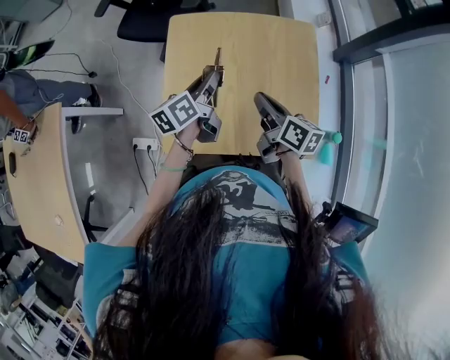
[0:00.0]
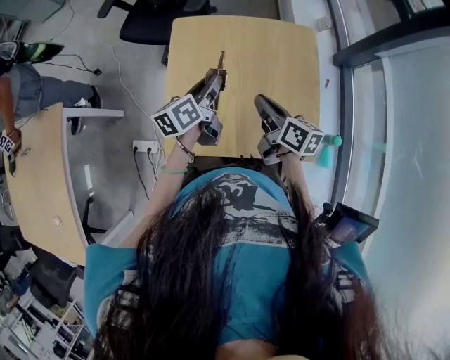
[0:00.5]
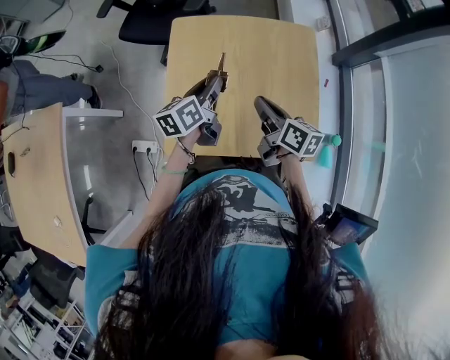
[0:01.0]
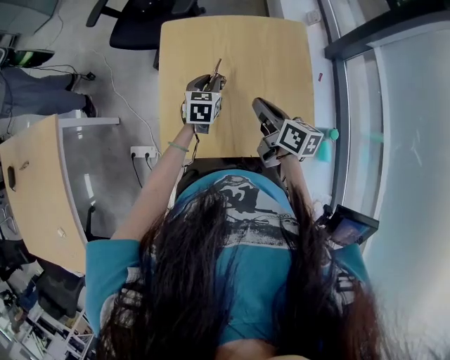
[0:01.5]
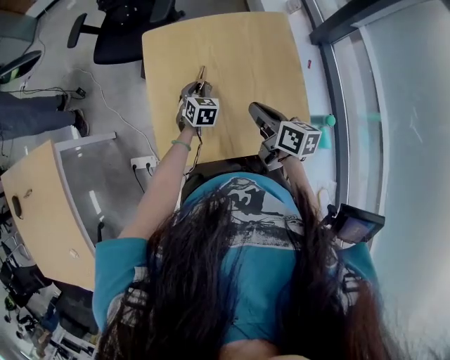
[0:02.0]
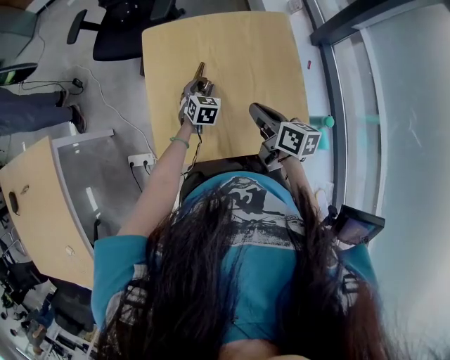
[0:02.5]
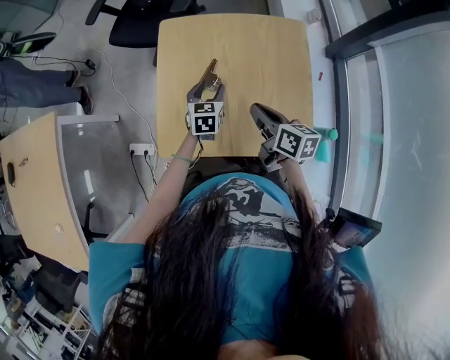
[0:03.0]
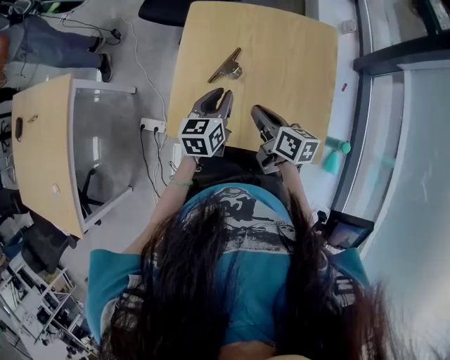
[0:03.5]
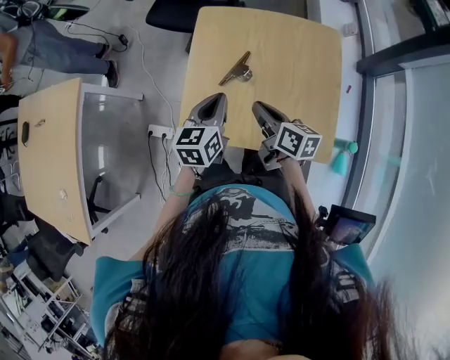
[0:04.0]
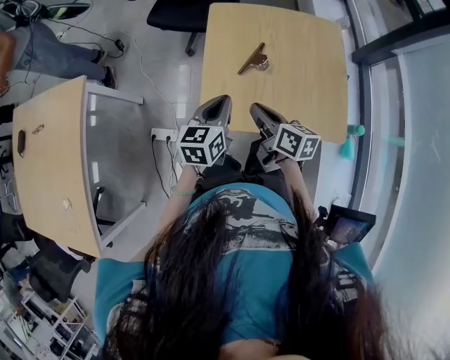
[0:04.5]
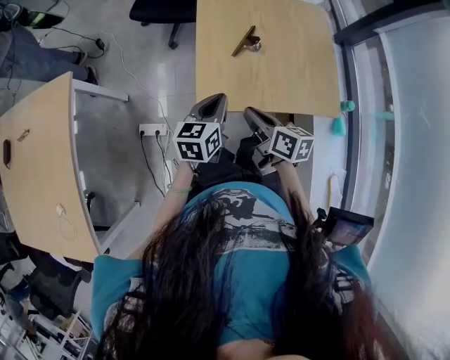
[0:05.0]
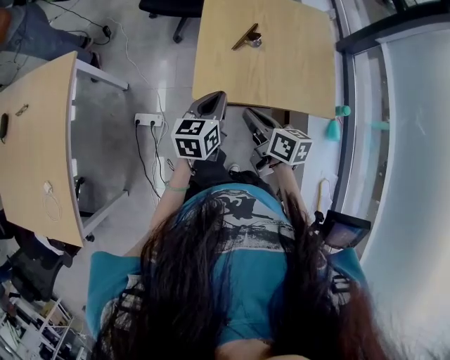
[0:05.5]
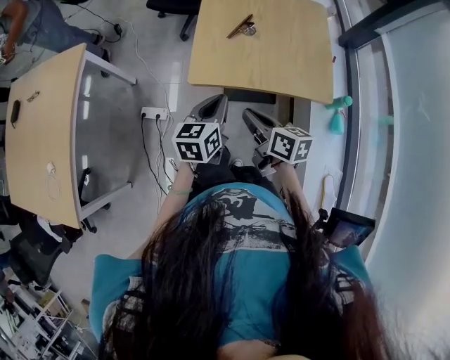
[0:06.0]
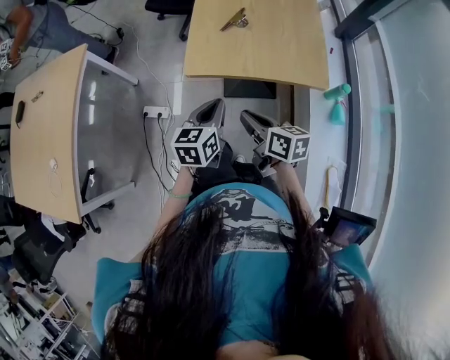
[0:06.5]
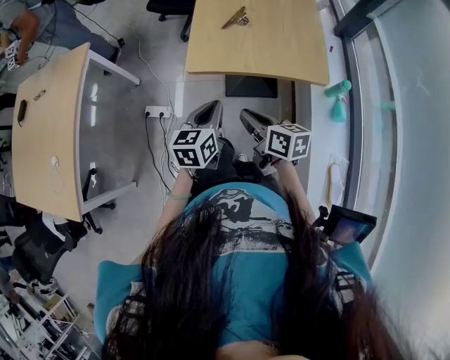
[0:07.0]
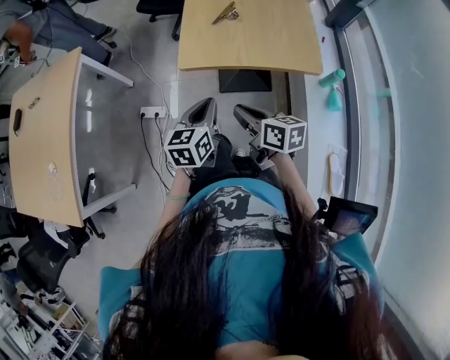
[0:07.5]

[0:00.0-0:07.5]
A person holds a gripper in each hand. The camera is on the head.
0:00.0 to 0:02.0: The left gripper moves downward, roughly 20 cm, and rolls clockwise, seen from behind, by some 60 degrees.
0:02.0 to 0:04.0: The right gripper heads to the left, covering about 10 cm; the left gripper heads upward, backward and to the left, covering some 25 cm, swivels about 40 degrees, and closes.
0:04.0 to 0:05.5: The two grippers go some 20 cm backward and to the left.
0:05.5 to 0:07.5: The two grippers go some 20 cm backward.

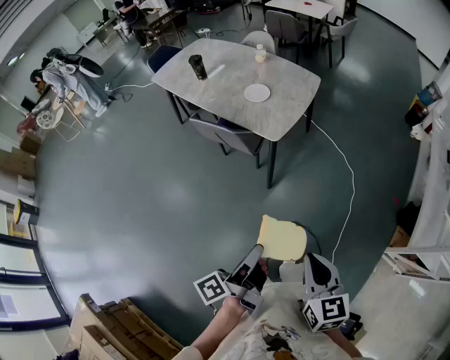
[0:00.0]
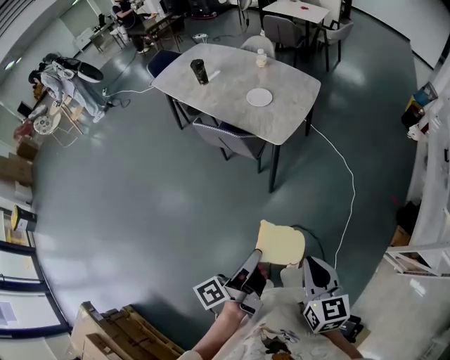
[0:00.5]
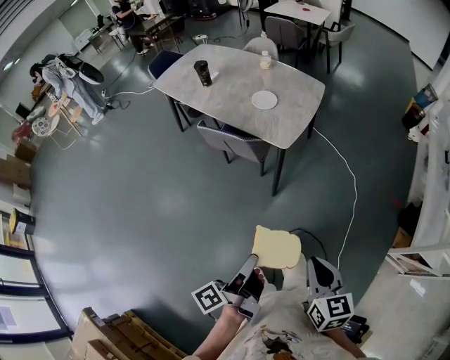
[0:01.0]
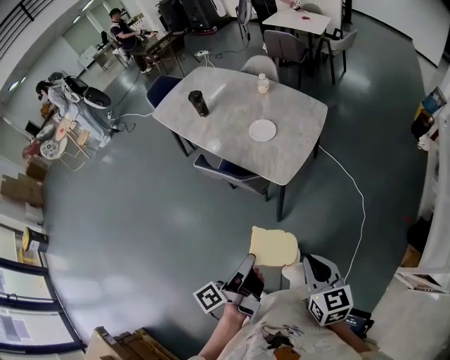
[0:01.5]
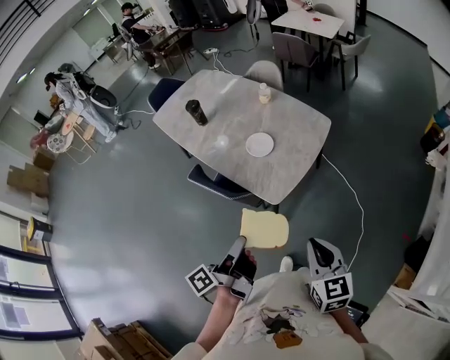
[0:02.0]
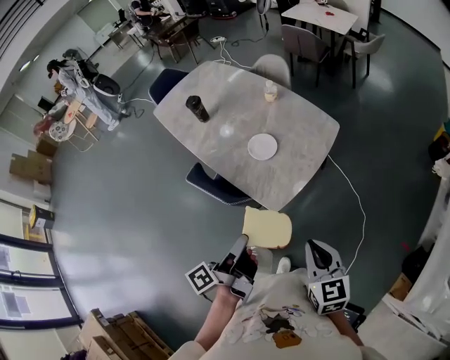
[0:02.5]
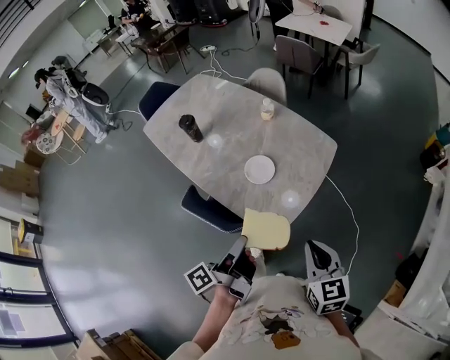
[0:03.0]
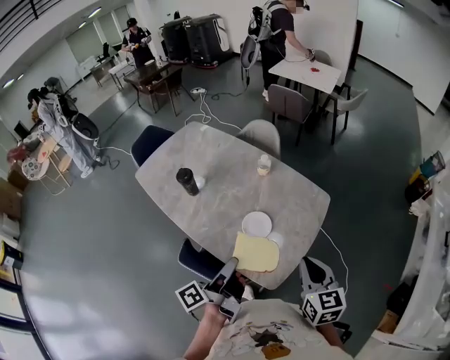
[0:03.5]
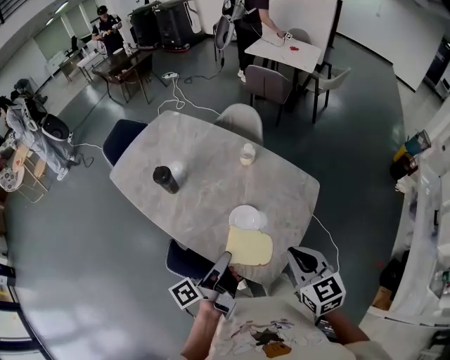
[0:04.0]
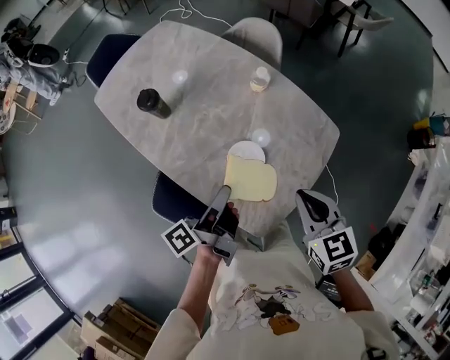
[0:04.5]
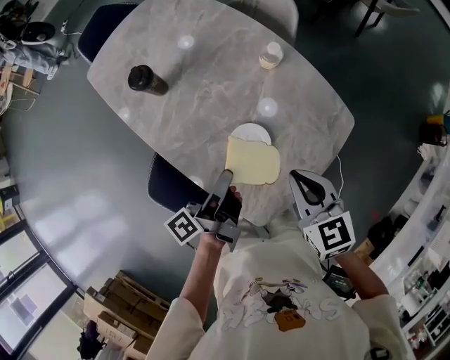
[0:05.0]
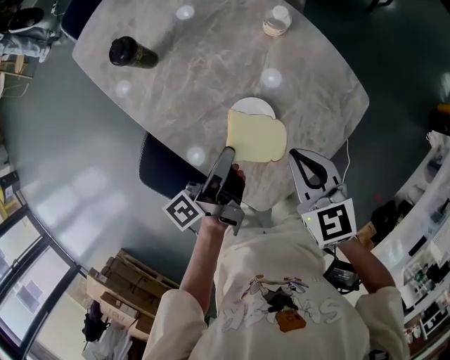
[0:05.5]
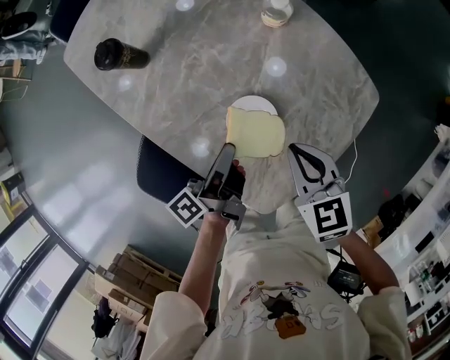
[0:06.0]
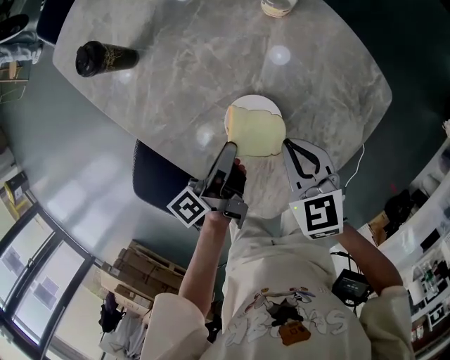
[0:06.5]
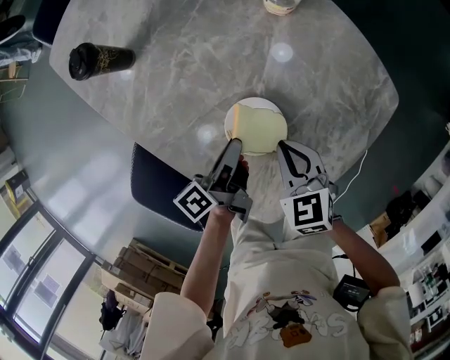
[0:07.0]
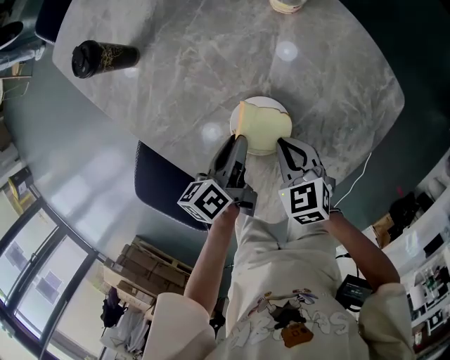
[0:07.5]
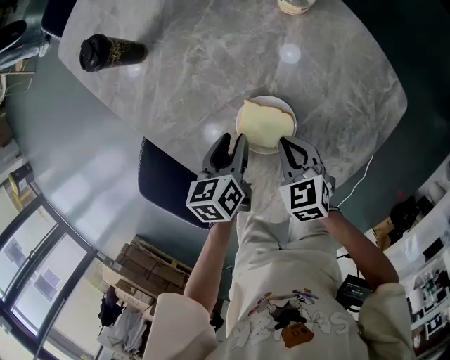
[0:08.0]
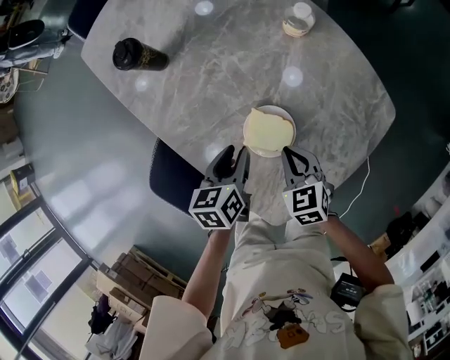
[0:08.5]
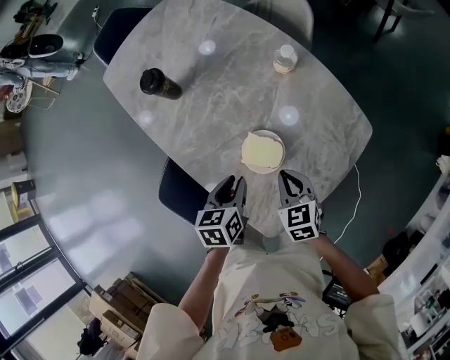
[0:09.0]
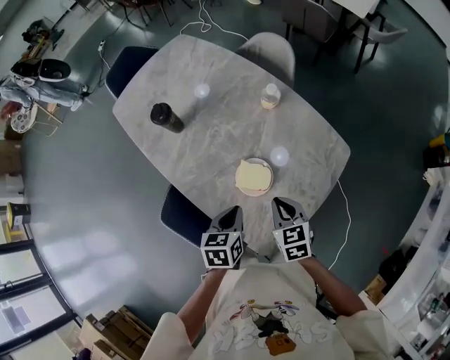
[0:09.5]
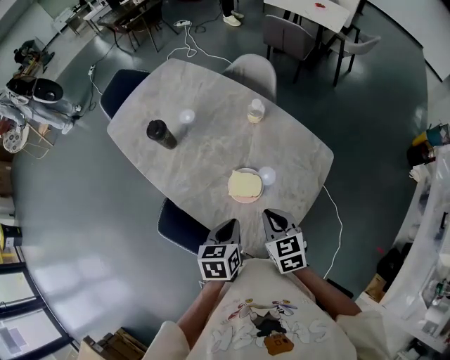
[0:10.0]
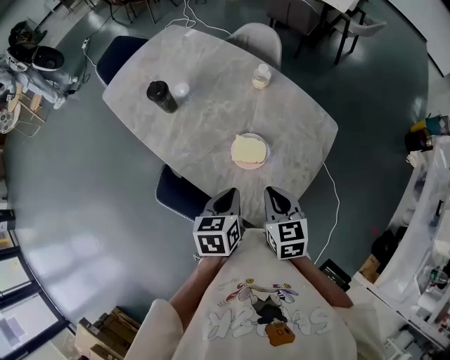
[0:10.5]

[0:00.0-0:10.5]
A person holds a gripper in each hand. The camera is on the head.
0:00.0 to 0:02.0: The right gripper changes place by about 30 cm.
0:02.0 to 0:04.0: The right gripper moves about 35 cm.
0:04.0 to 0:06.5: The right gripper heads downward, covering about 25 cm, and swivels about 20 degrees.
0:06.5 to 0:08.5: The right gripper travels downward by approximately 5 cm.
0:08.5 to 0:10.5: The right gripper shifts about 15 cm upward, and changes its angle by some 20 degrees.

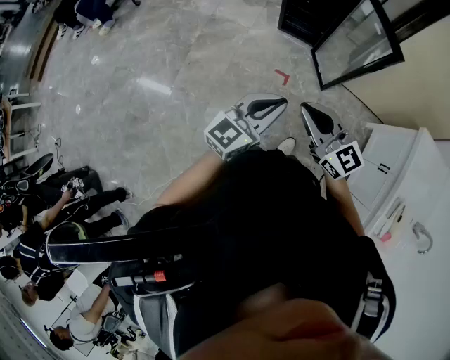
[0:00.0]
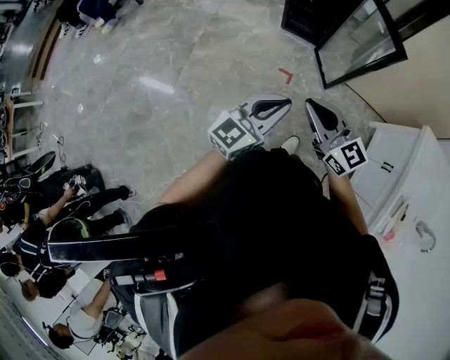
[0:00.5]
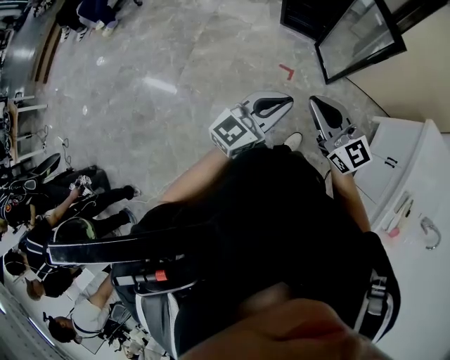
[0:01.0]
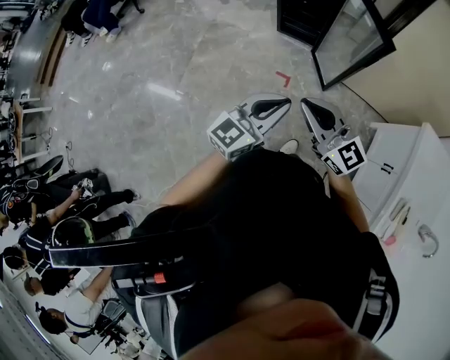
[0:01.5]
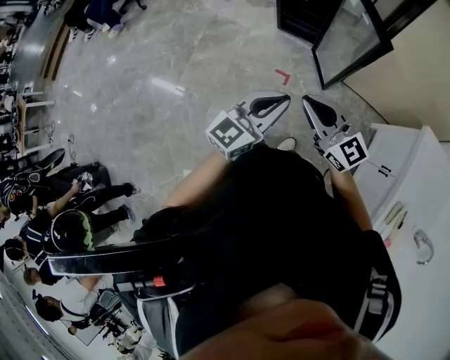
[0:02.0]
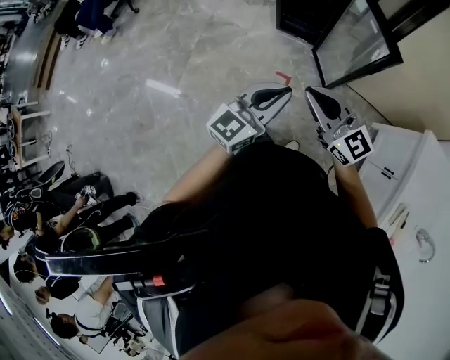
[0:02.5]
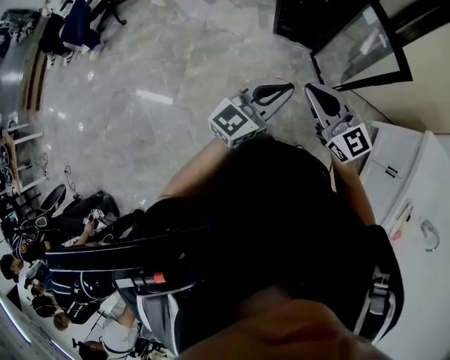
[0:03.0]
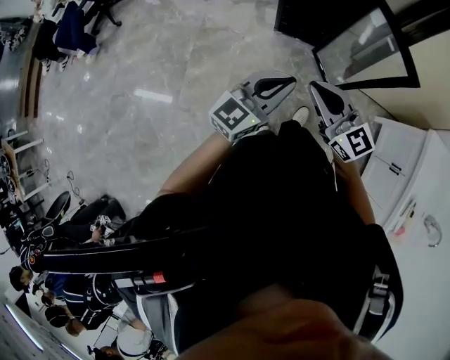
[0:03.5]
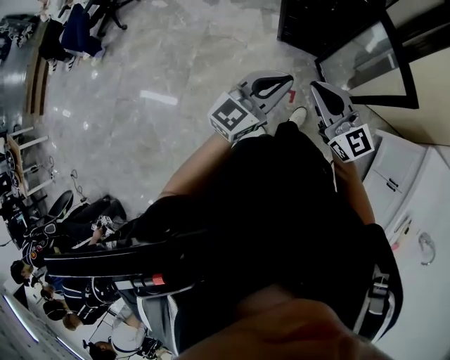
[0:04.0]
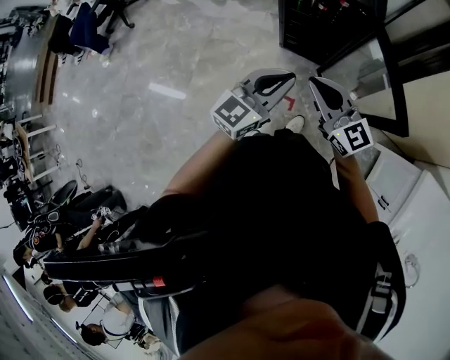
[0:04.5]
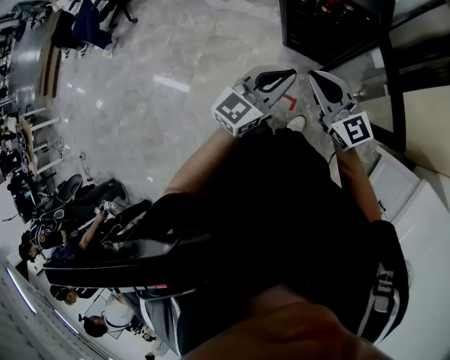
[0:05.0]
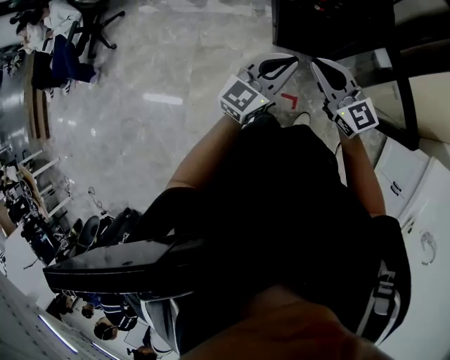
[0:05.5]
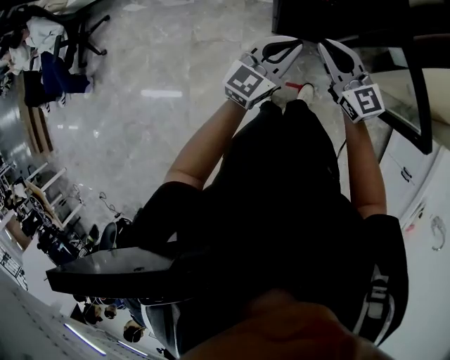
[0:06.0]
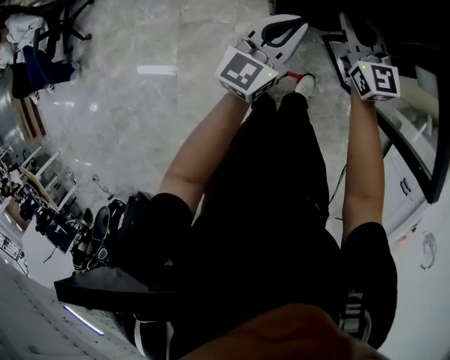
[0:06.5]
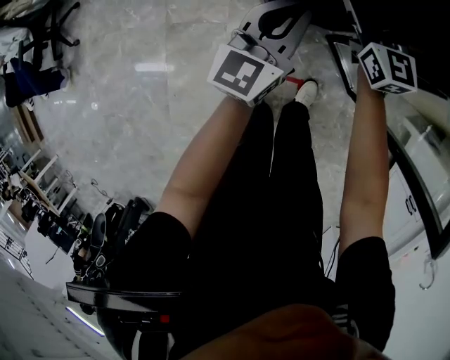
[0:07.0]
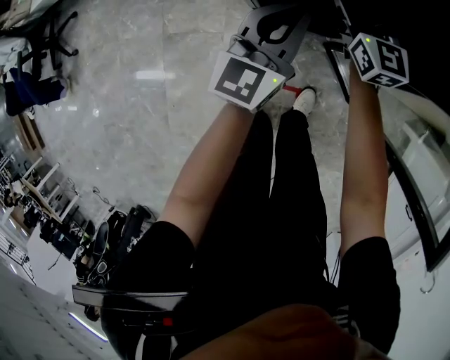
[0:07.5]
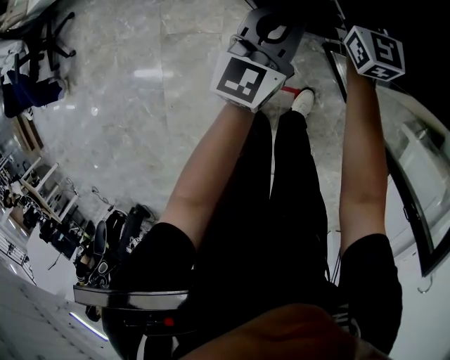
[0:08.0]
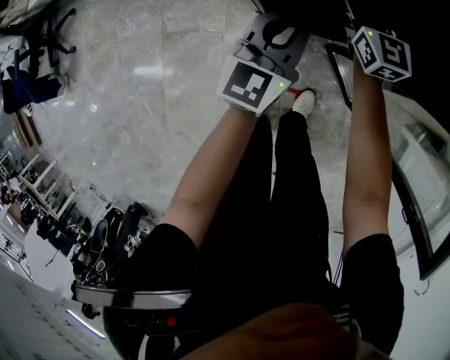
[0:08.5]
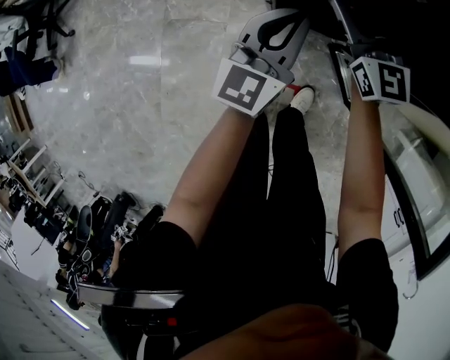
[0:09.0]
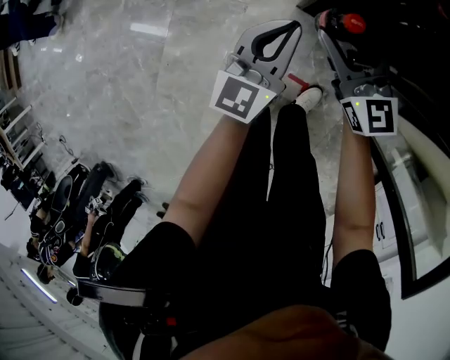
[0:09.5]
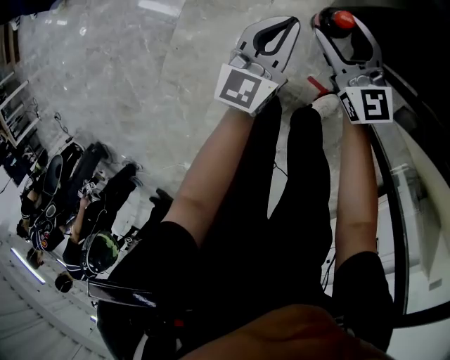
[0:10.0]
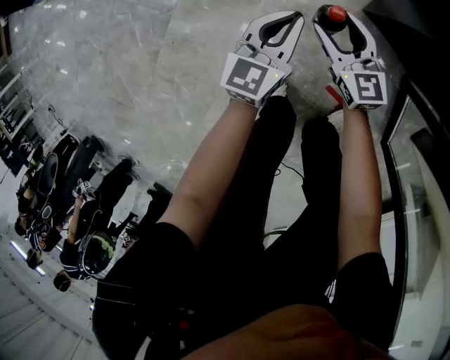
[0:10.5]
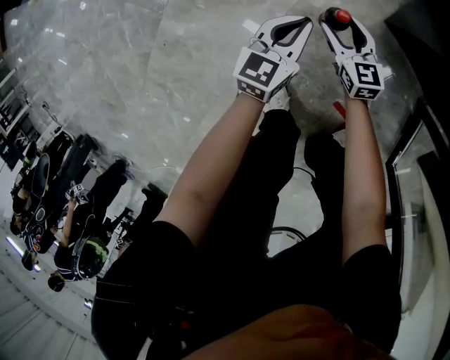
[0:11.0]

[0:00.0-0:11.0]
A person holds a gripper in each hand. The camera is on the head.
0:00.0 to 0:02.0: The grippers both shift to the right by some 10 cm.
0:02.0 to 0:03.5: Both grippers travel together forward and to the left, roughly 25 cm.
0:03.5 to 0:05.5: The two grippers go approximately 30 cm forward.
0:05.5 to 0:07.5: The left gripper travels downward and forward by approximately 35 cm; the right gripper shifts about 40 cm forward and downward, changes its angle by approximately 30 degrees, and opens up.
0:07.5 to 0:09.0: The right gripper is displaced to the left by approximately 5 cm.
0:09.0 to 0:11.0: Both grippers move downward, roughly 60 cm. The right gripper changes its angle by about 40 degrees. Meanwhile the left gripper swivels approximately 30 degrees.
